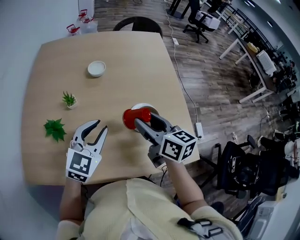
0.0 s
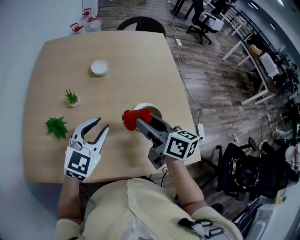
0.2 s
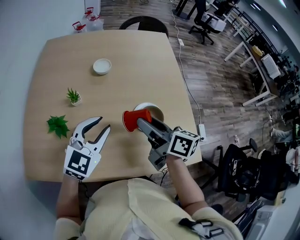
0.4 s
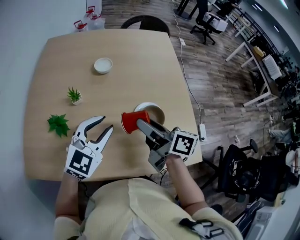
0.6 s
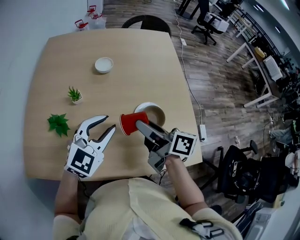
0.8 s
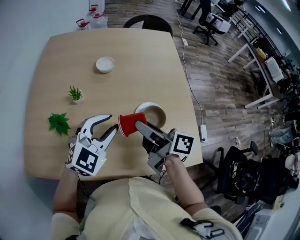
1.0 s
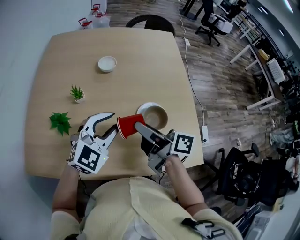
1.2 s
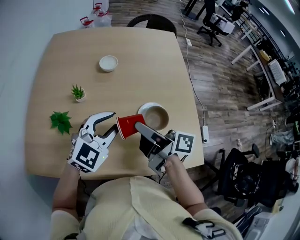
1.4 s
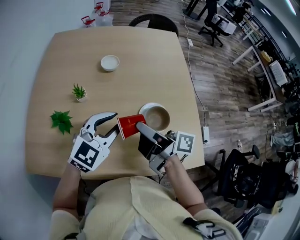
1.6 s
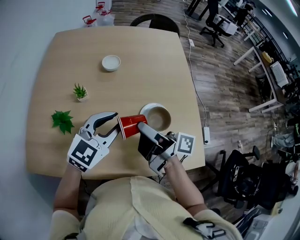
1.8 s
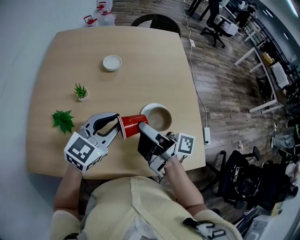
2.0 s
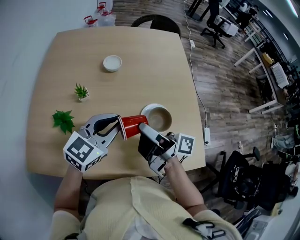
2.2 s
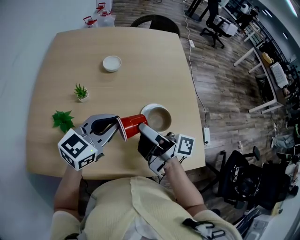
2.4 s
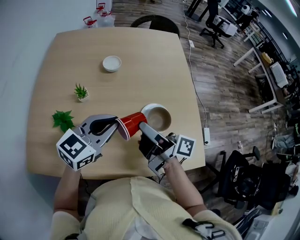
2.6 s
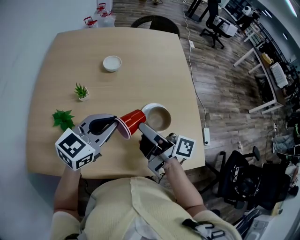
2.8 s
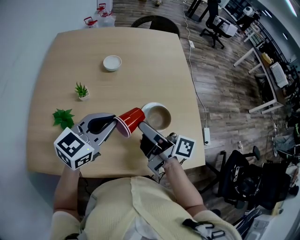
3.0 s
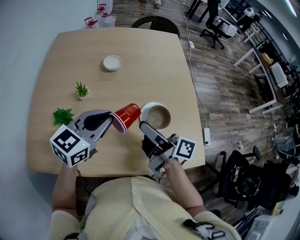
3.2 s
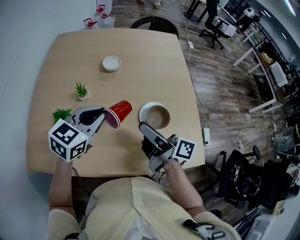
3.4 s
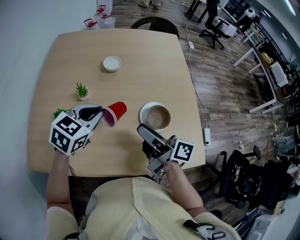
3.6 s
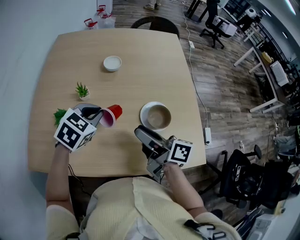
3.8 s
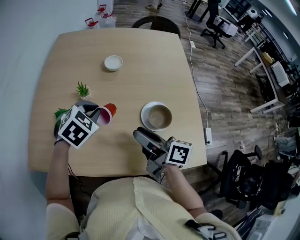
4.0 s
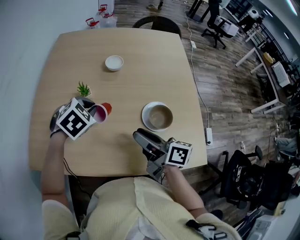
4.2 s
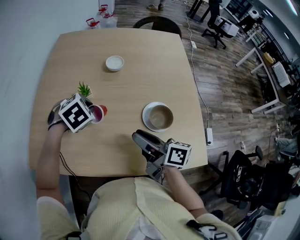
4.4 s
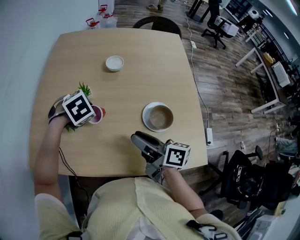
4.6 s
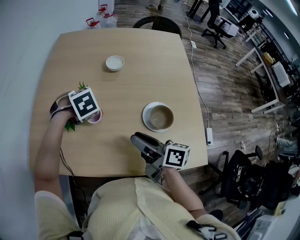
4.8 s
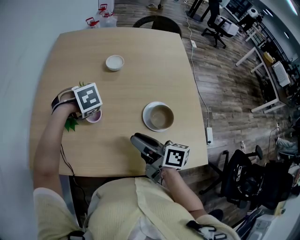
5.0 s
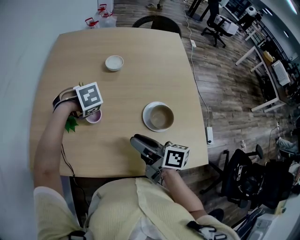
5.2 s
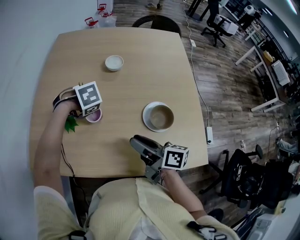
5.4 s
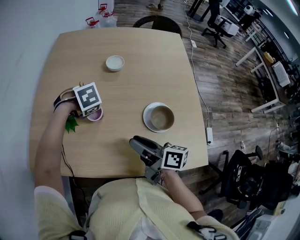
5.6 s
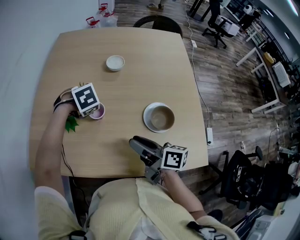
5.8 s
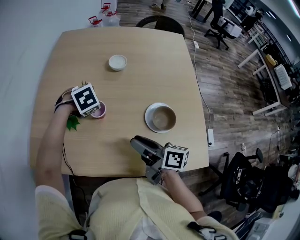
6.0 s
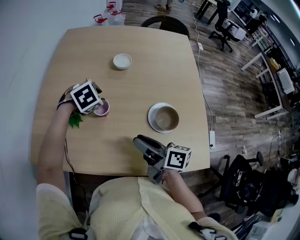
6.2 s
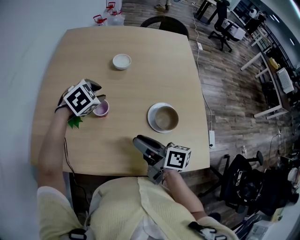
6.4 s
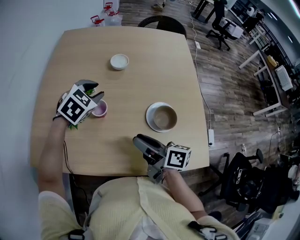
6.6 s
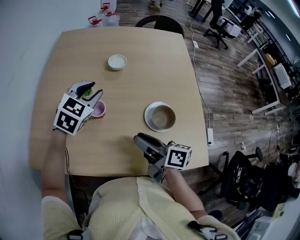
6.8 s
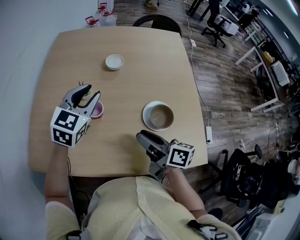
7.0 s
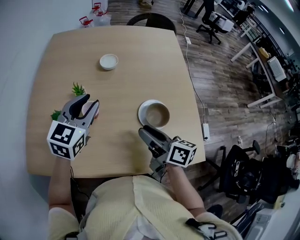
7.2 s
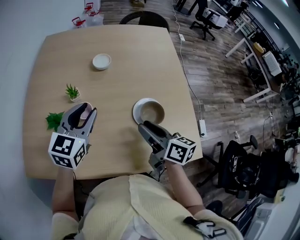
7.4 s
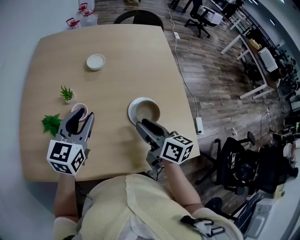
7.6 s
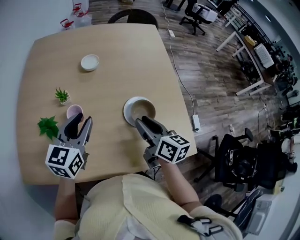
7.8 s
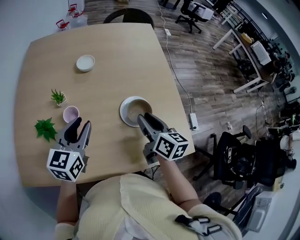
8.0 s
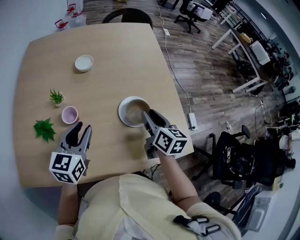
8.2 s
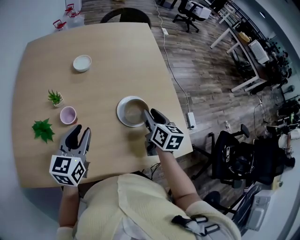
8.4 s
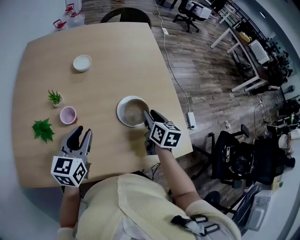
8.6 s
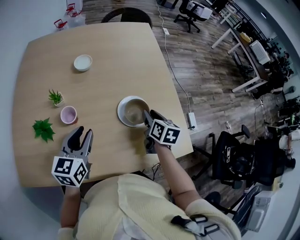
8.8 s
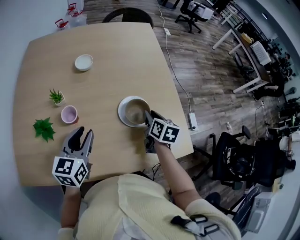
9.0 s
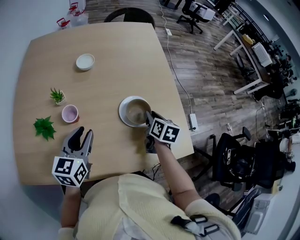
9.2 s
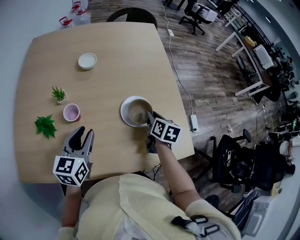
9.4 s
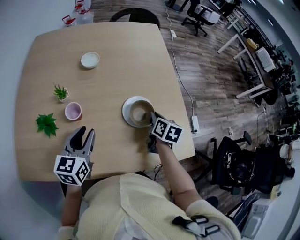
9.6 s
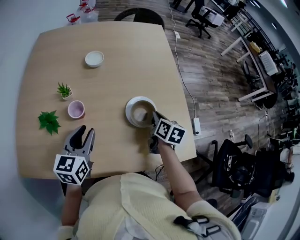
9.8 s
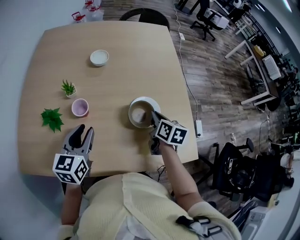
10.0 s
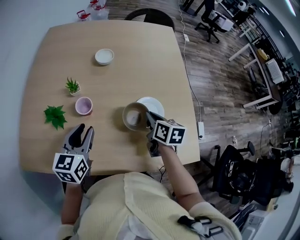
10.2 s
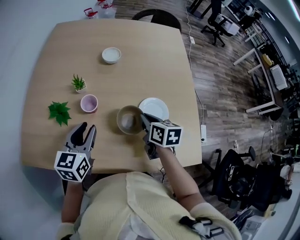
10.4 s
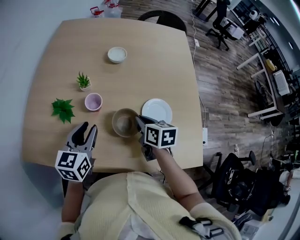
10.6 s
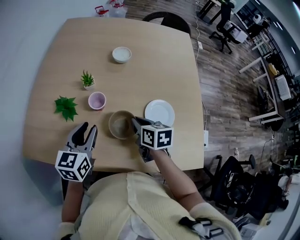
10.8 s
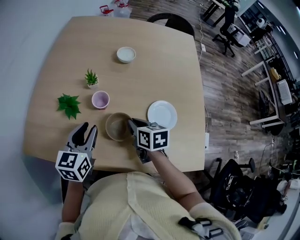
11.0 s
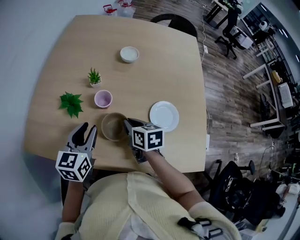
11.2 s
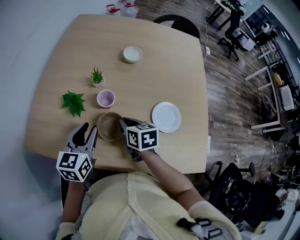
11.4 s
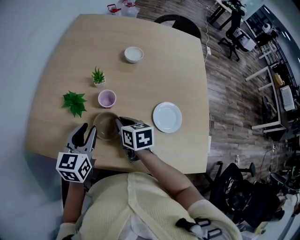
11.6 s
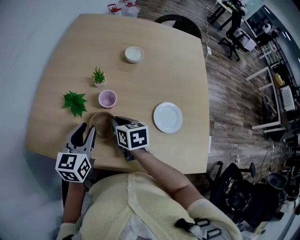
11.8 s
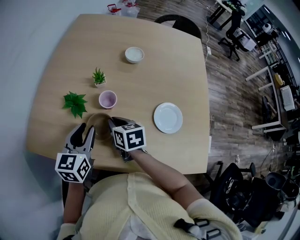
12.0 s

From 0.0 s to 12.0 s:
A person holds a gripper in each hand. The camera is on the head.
From 0.0 s to 1.6 s: The right gripper is displaced to the left by about 5 cm, and twists roughly 50 degrees clockwise, seen from behind.
From 1.6 s to 3.0 s: The left gripper changes its angle by about 20 degrees, and closes.
From 3.0 s to 4.4 s: The right gripper shifts by approximately 5 cm, while the left gripper heads downward, to the left and forward, covering roughly 15 cm, and points its fingers roughly 50 degrees further downward.
From 4.4 s to 6.0 s: The left gripper ends up some 5 cm from where it was, and opens up.
From 6.0 s to 7.6 s: The left gripper moves upward and backward, about 15 cm, and points its fingers approximately 60 degrees further upward. Meanwhile the right gripper heads to the right, covering some 10 cm, and turns by about 30 degrees.
From 7.6 s to 9.0 s: The left gripper is displaced downward by roughly 5 cm; the right gripper shifts about 15 cm to the right, downward and forward, and changes its angle by about 30 degrees.
From 9.0 s to 10.4 s: The left gripper shifts approximately 5 cm to the left. Meanwhile the right gripper moves to the left, some 15 cm, changes its angle by roughly 30 degrees, and closes up.
From 10.4 s to 12.0 s: The left gripper shifts about 5 cm to the left; the right gripper is displaced to the left by about 20 cm, and swivels some 20 degrees.

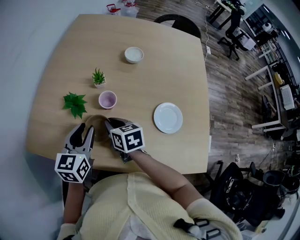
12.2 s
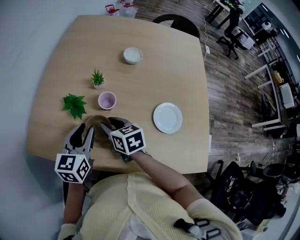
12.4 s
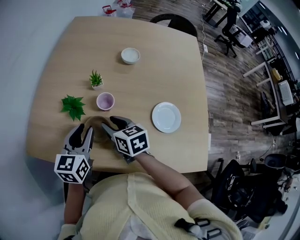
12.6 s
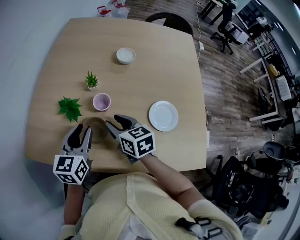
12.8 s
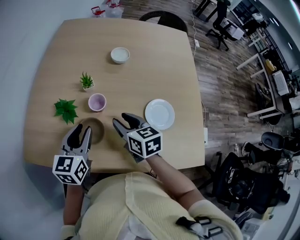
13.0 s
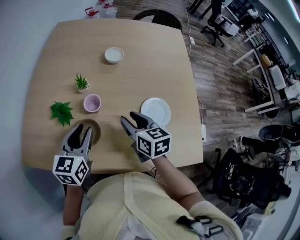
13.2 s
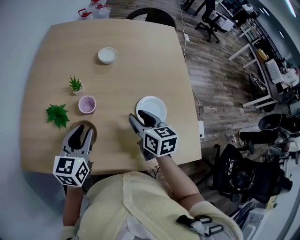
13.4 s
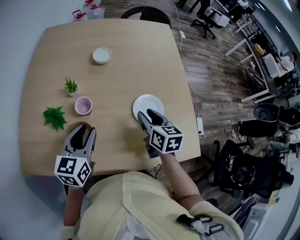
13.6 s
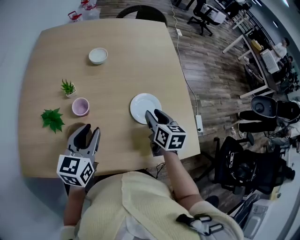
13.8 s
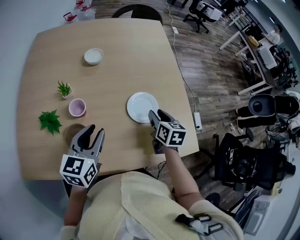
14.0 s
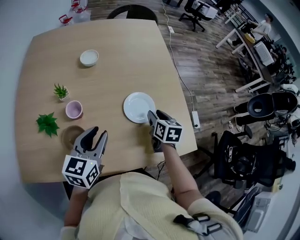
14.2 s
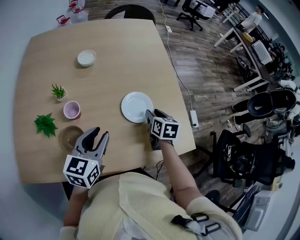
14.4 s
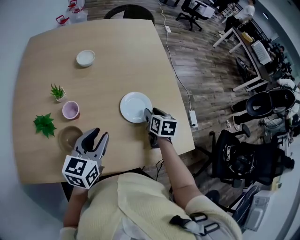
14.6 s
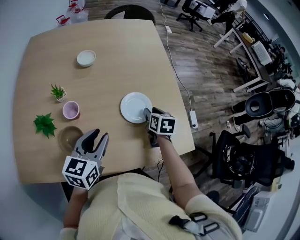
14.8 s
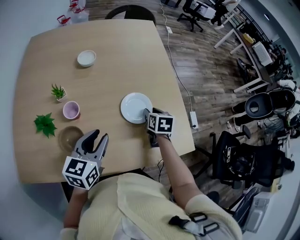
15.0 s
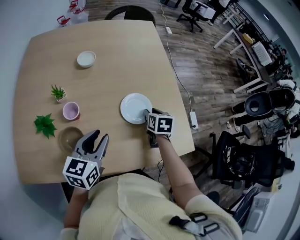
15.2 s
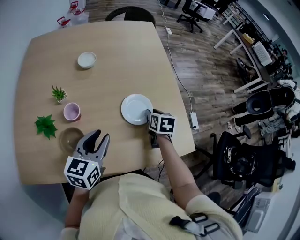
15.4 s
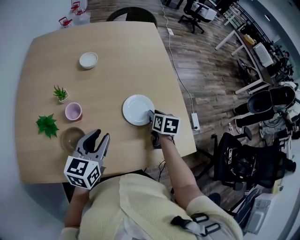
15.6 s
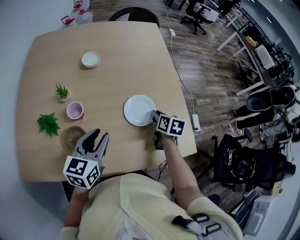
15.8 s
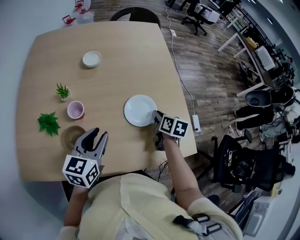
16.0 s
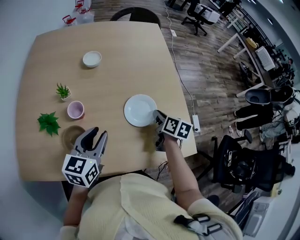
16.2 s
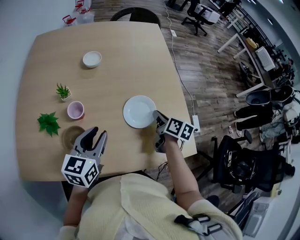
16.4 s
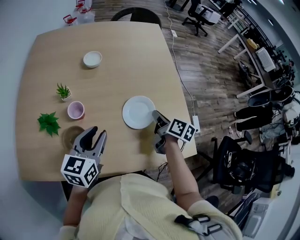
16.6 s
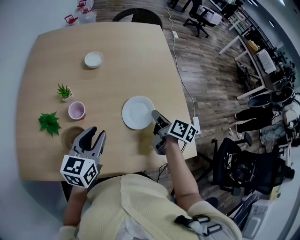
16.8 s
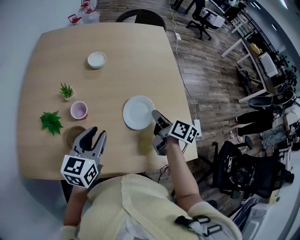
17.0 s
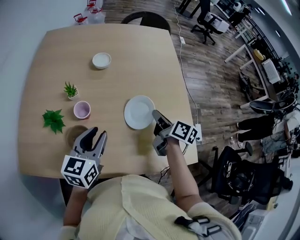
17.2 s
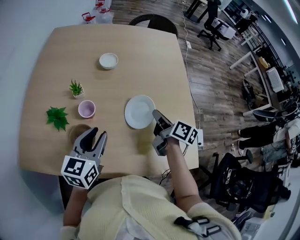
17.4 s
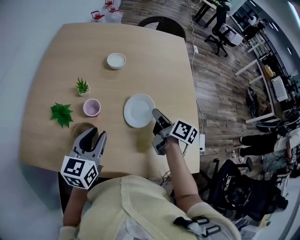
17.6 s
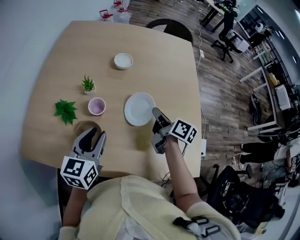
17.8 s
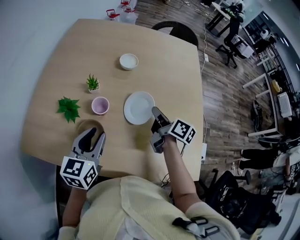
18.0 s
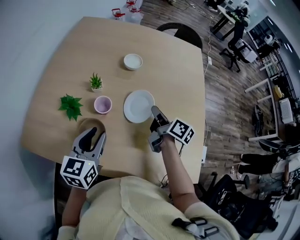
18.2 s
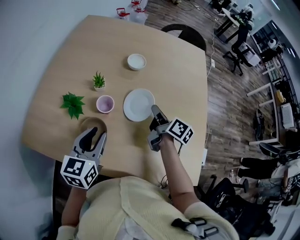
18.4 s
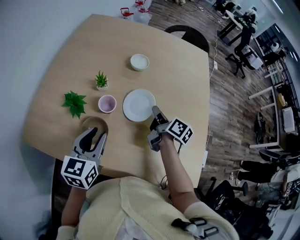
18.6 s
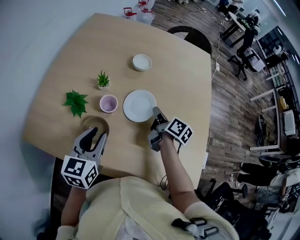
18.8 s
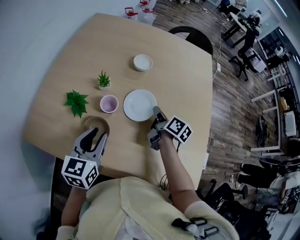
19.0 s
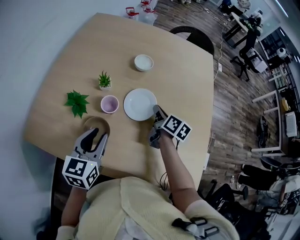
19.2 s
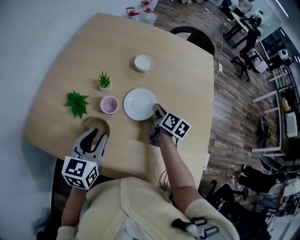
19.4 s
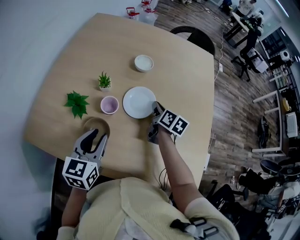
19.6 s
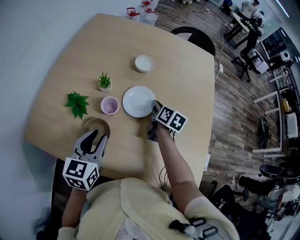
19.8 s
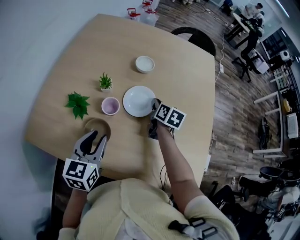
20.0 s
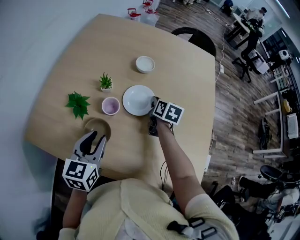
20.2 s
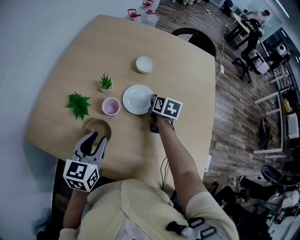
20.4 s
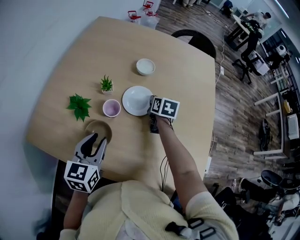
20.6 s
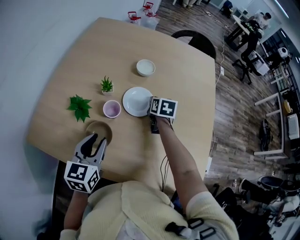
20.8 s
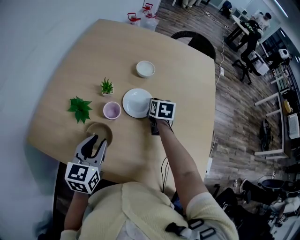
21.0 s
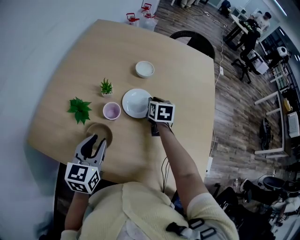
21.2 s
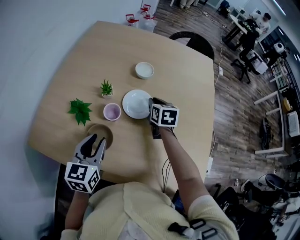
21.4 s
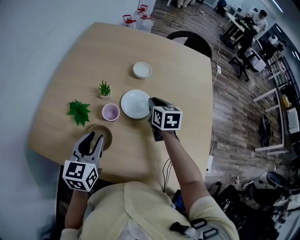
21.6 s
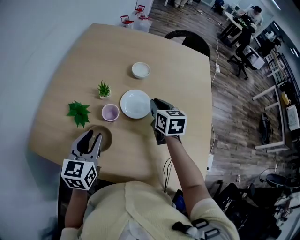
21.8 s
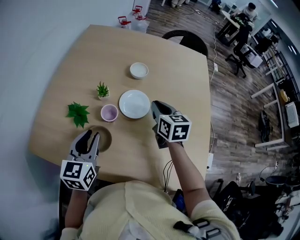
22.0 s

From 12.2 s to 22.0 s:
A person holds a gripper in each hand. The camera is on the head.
From 12.2 s to 13.6 s: The right gripper changes place by some 25 cm, changes its angle by roughly 30 degrees, and opens up. The left gripper changes place by about 10 cm.
From 13.6 s to 15.0 s: The right gripper shifts roughly 15 cm to the right and downward, and rotates some 20 degrees. The left gripper heads to the right, covering approximately 10 cm.
From 15.0 s to 16.4 s: The right gripper turns by approximately 30 degrees, and closes up.
From 16.4 s to 17.8 s: The right gripper travels to the left, forward and upward by roughly 15 cm, and rotates roughly 20 degrees; the left gripper travels to the left by some 5 cm.
From 17.8 s to 19.2 s: The right gripper is displaced forward and downward by roughly 10 cm.
From 19.2 s to 20.6 s: The right gripper is displaced forward by roughly 5 cm, and changes its angle by roughly 30 degrees.
From 20.6 s to 22.0 s: The right gripper shifts about 15 cm upward and backward.

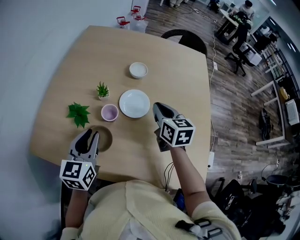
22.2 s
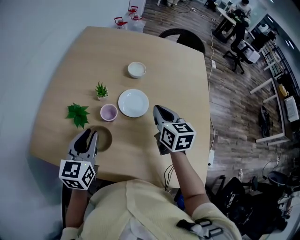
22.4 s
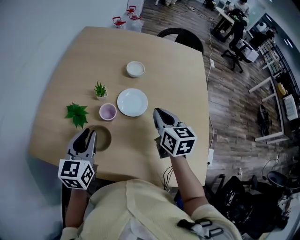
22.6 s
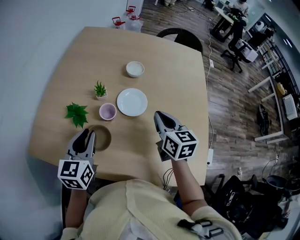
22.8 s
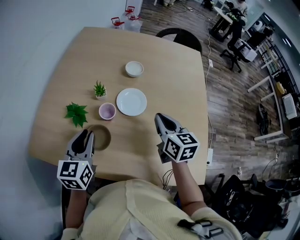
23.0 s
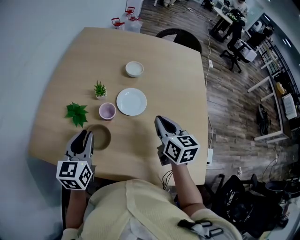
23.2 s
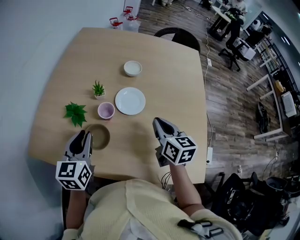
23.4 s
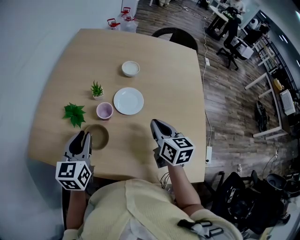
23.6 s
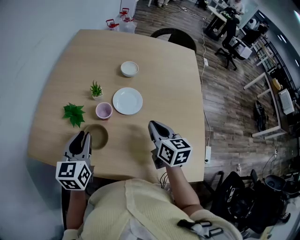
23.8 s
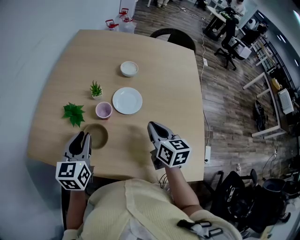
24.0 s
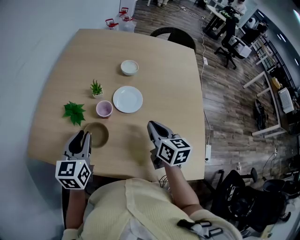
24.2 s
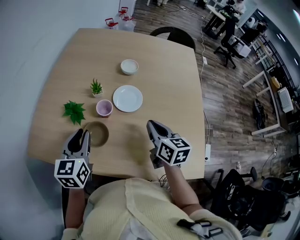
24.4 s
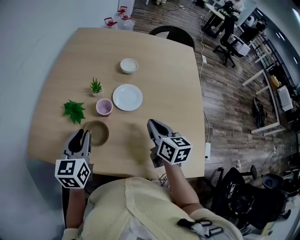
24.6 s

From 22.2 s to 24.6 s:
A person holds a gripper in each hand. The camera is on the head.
From 22.2 s to 23.4 s: The right gripper shifts about 10 cm backward.
From 23.4 s to 24.6 s: The grippers make only small movements.
